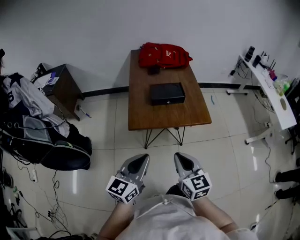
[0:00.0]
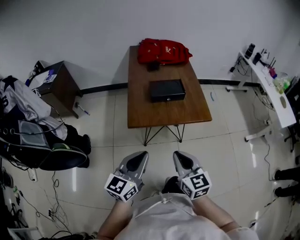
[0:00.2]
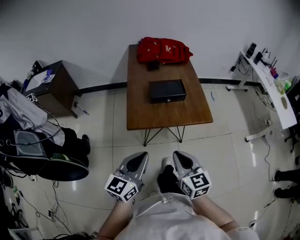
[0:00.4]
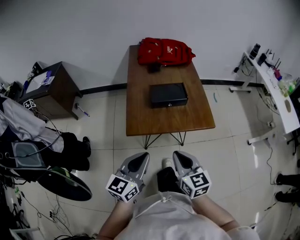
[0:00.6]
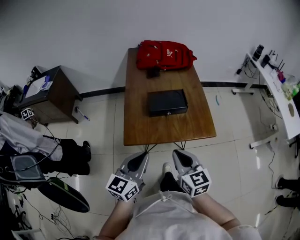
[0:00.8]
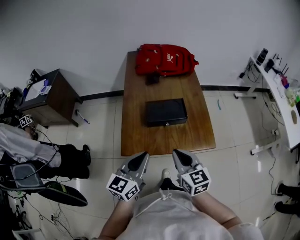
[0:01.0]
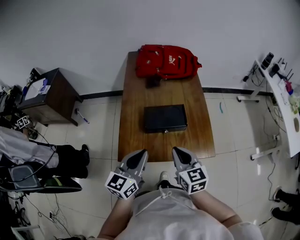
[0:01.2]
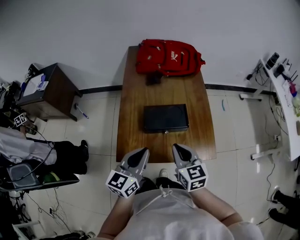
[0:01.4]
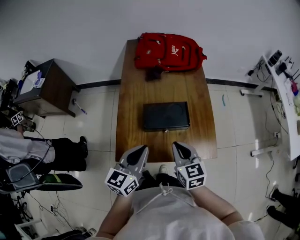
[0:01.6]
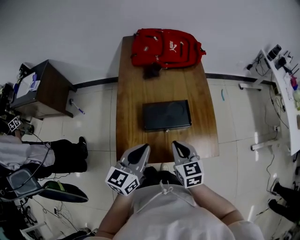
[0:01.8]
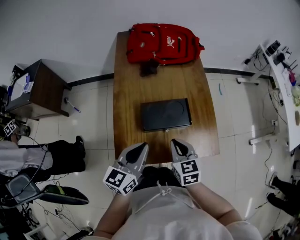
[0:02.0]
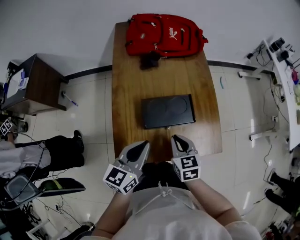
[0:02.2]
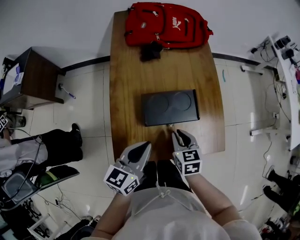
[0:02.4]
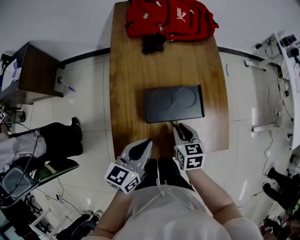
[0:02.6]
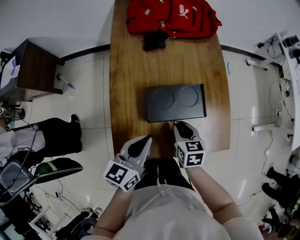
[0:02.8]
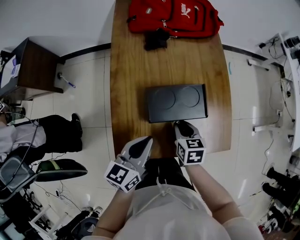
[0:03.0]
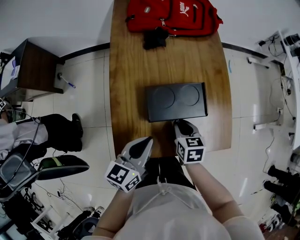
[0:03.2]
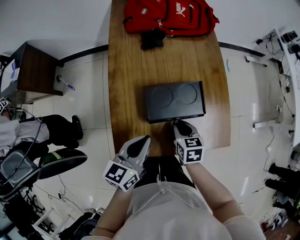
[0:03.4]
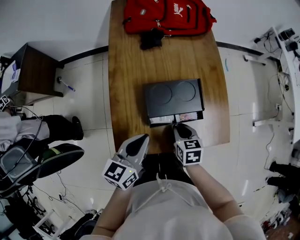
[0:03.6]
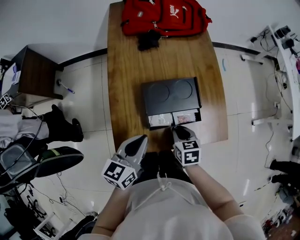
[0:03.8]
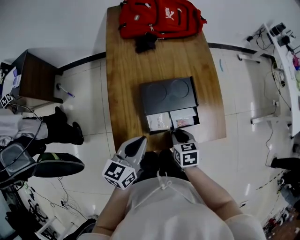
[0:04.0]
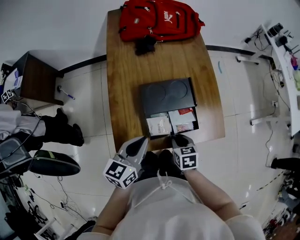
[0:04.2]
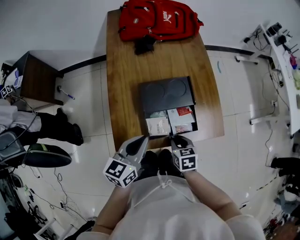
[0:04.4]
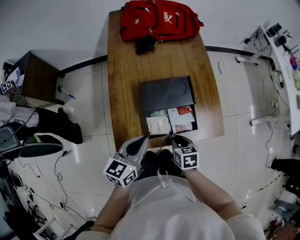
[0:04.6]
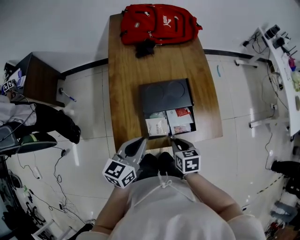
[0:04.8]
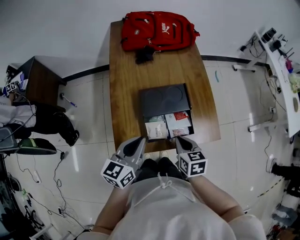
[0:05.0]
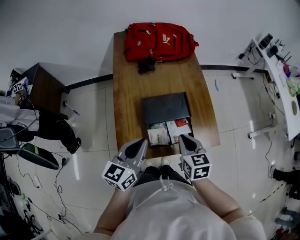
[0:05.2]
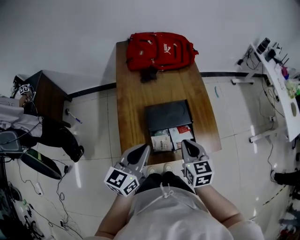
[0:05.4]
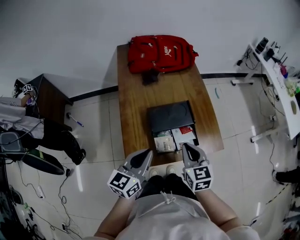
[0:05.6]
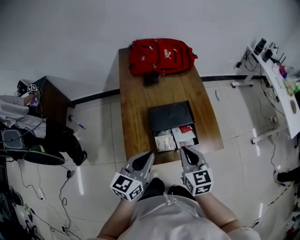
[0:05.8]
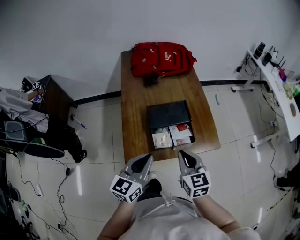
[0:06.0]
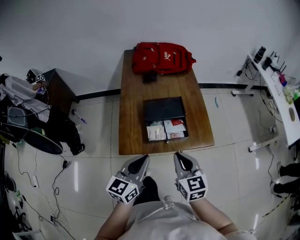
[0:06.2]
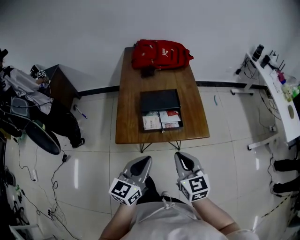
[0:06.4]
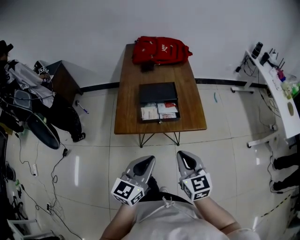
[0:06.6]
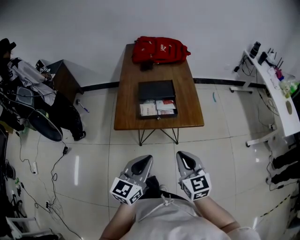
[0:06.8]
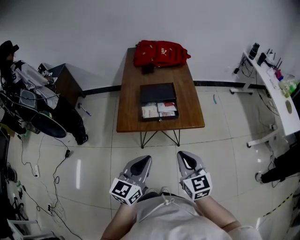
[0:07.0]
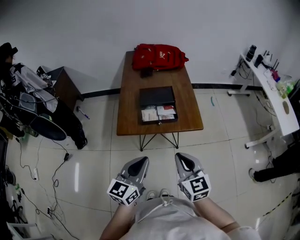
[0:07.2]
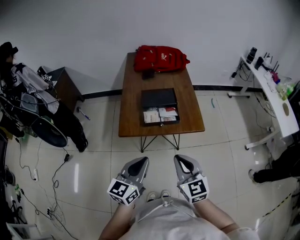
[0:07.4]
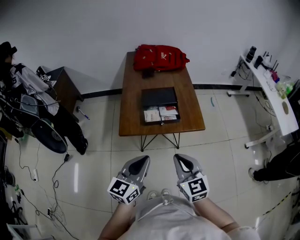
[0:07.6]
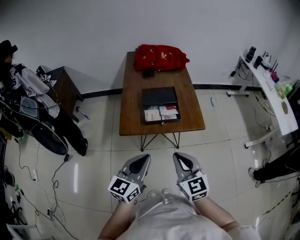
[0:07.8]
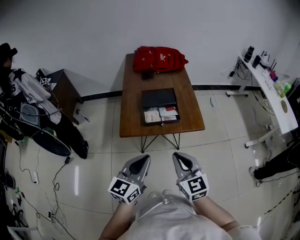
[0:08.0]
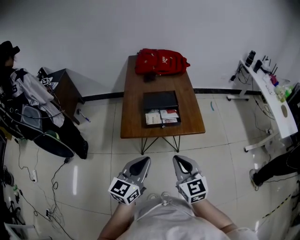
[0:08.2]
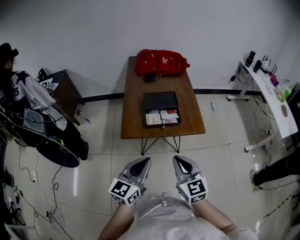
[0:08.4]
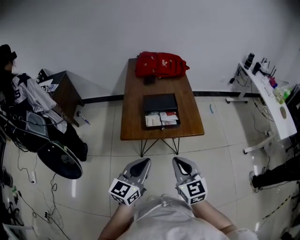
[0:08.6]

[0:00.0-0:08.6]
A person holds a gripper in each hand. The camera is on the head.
0:00.0 to 0:01.4: Both grippers travel together forward, about 30 cm.
0:01.4 to 0:02.8: The left gripper heads downward and forward, covering about 15 cm. Meanwhile the right gripper heads downward and forward, covering approximately 20 cm, and changes its angle by about 30 degrees.
0:02.8 to 0:04.4: The right gripper is displaced backward by roughly 10 cm. Meanwhile the left gripper goes about 5 cm backward.
0:04.4 to 0:05.8: The right gripper heads upward, covering roughly 20 cm, and points its fingers some 30 degrees further upward; the left gripper shifts some 10 cm upward.
0:05.8 to 0:07.2: The right gripper shifts some 25 cm backward. Meanwhile the left gripper goes some 25 cm backward and to the right.
0:07.2 to 0:08.6: The grippers make only small movements.

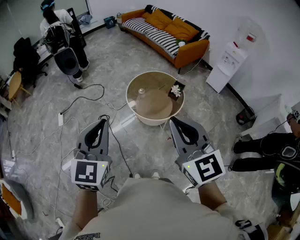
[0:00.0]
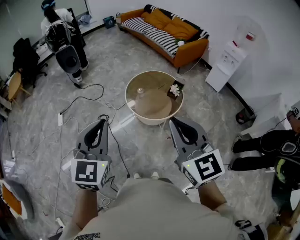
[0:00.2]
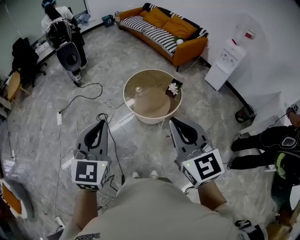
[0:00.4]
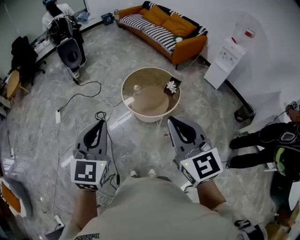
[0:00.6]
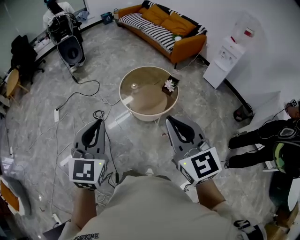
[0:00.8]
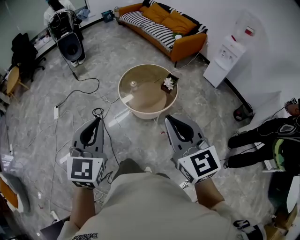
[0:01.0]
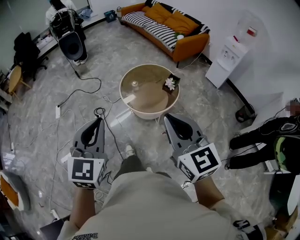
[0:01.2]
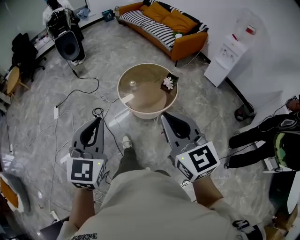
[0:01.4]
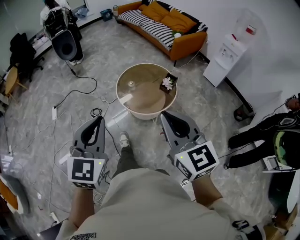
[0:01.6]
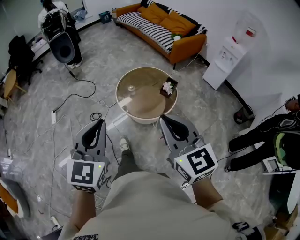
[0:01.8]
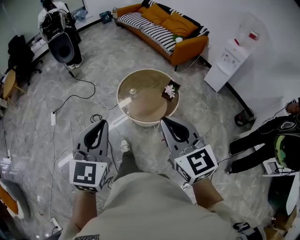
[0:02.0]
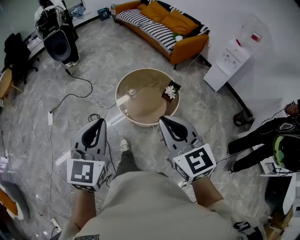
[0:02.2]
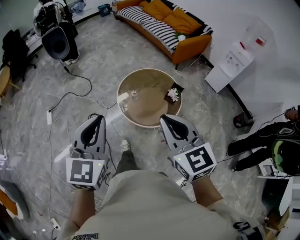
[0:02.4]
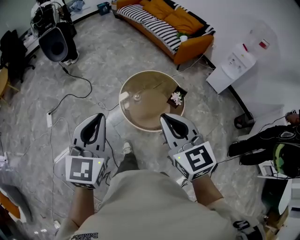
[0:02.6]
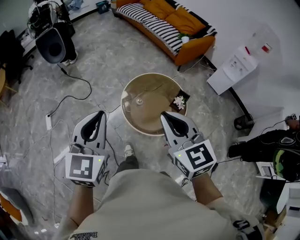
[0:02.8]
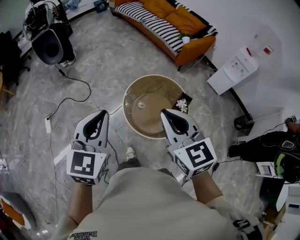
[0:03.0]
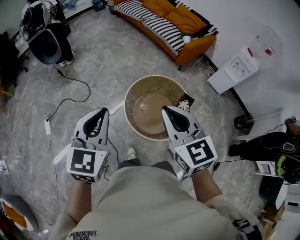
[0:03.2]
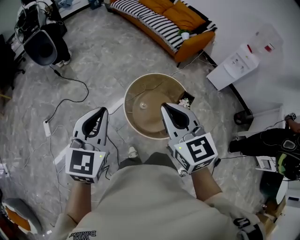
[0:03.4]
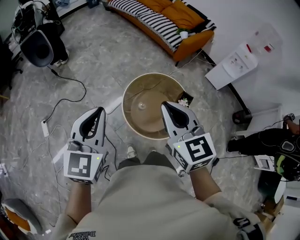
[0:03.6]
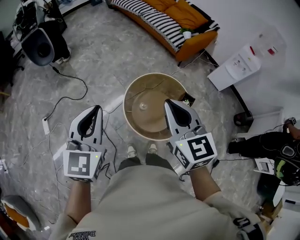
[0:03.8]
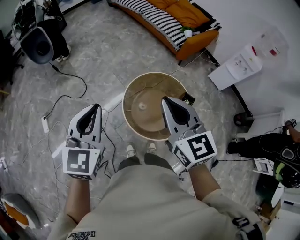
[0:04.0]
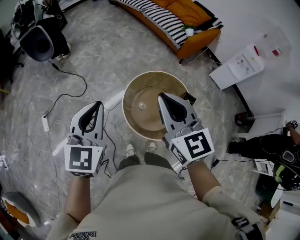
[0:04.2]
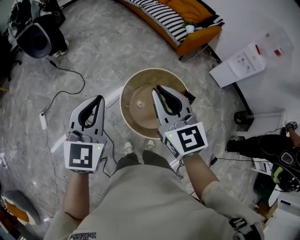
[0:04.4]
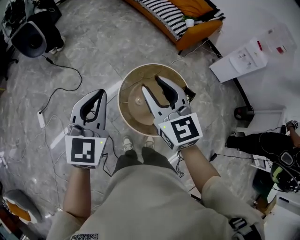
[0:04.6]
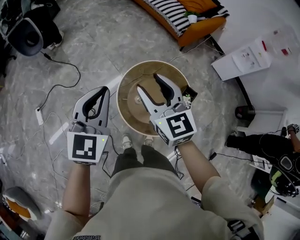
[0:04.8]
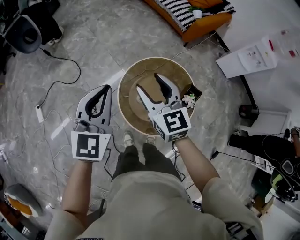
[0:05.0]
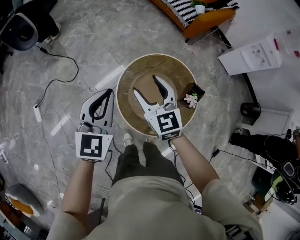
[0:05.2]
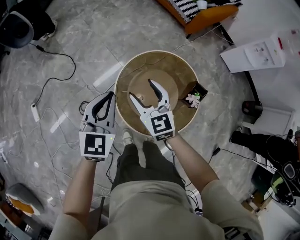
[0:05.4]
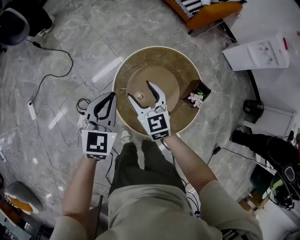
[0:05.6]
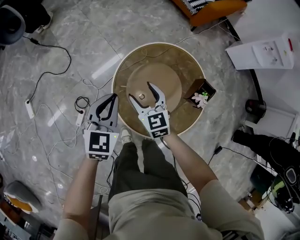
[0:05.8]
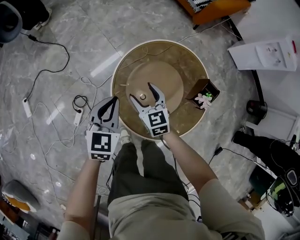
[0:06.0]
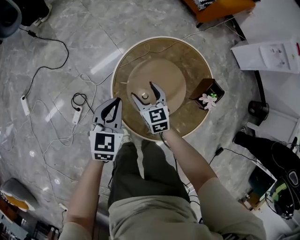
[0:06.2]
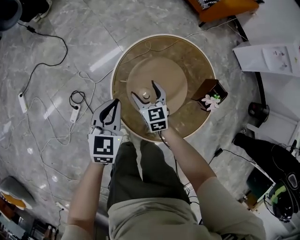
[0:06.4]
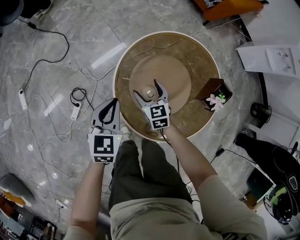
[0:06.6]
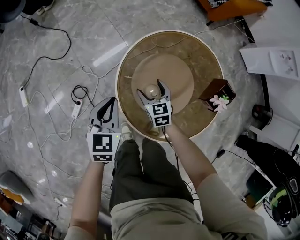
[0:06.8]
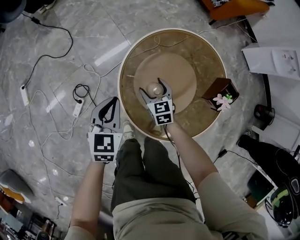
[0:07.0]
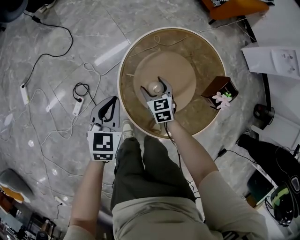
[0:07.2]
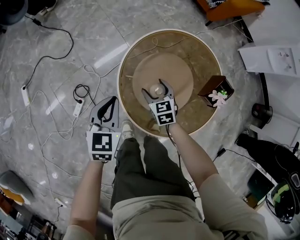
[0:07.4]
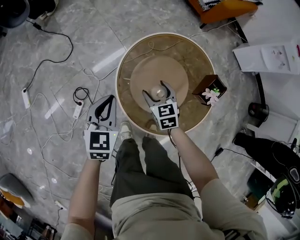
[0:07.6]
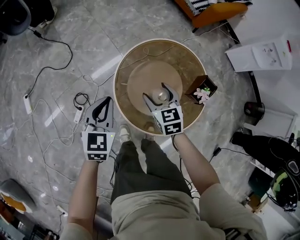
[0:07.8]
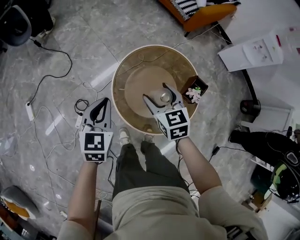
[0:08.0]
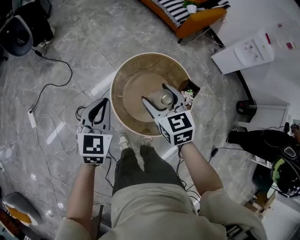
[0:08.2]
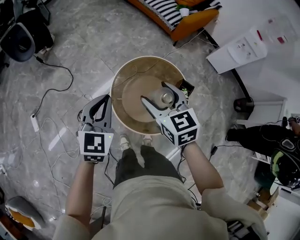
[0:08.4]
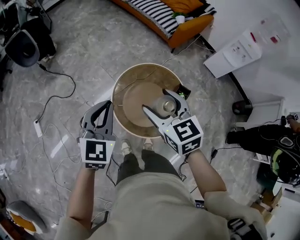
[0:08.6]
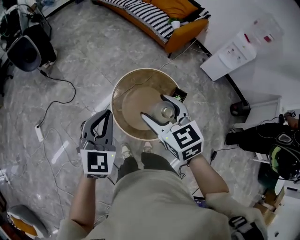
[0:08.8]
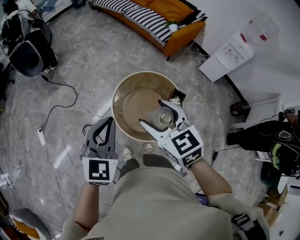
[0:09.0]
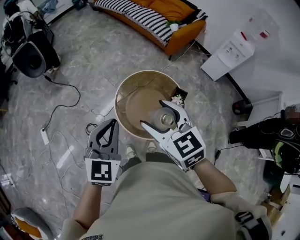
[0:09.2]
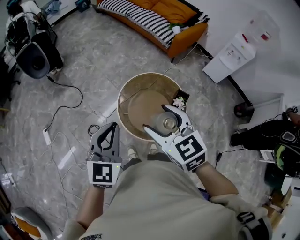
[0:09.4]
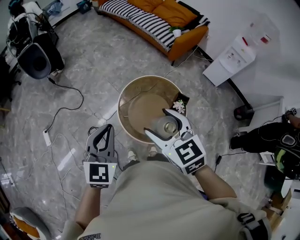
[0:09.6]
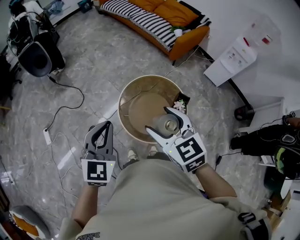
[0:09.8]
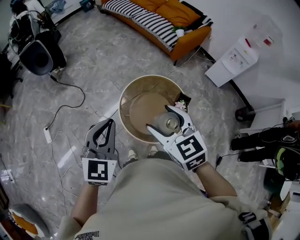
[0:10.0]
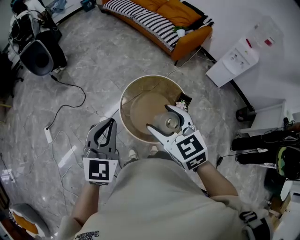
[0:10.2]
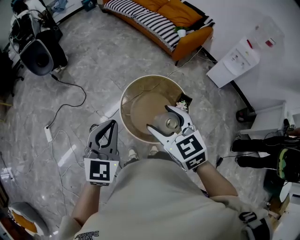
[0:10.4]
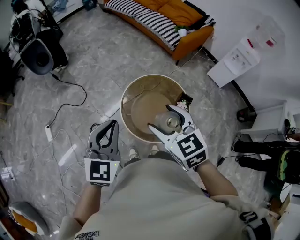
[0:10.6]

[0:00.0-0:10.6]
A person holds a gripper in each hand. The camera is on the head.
0:00.0 to 0:01.6: The left gripper is displaced to the right by about 10 cm. Meanwhile the right gripper goes roughly 10 cm to the right and downward.
0:01.6 to 0:03.0: The two grippers go roughly 35 cm forward.
0:03.0 to 0:04.6: The grippers both shift forward by roughly 20 cm. The right gripper opens its fingers.
0:04.6 to 0:06.0: Both grippers move downward, approximately 40 cm. The right gripper turns by roughly 20 degrees, and opens up.
0:06.0 to 0:07.6: The right gripper goes roughly 5 cm downward. Meanwhile the left gripper reaches approximately 10 cm downward, then returns.
0:07.6 to 0:09.0: The grippers both shift upward by approximately 50 cm. The left gripper turns by approximately 20 degrees.
0:09.0 to 0:10.6: There are only small adjustments of the grippers.

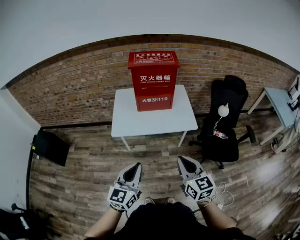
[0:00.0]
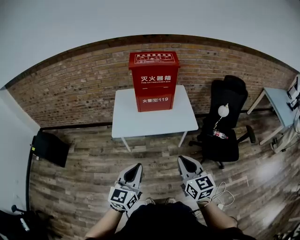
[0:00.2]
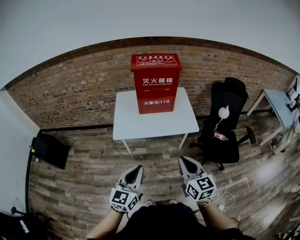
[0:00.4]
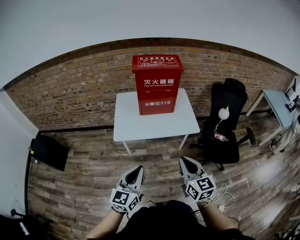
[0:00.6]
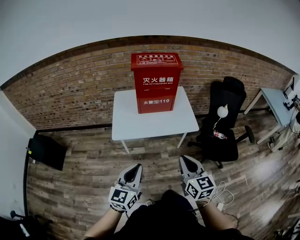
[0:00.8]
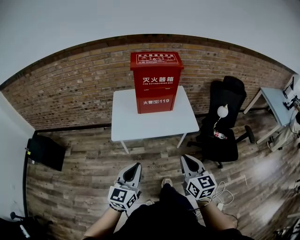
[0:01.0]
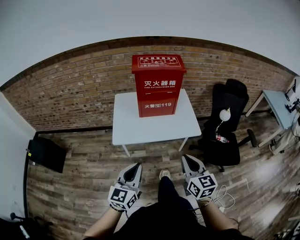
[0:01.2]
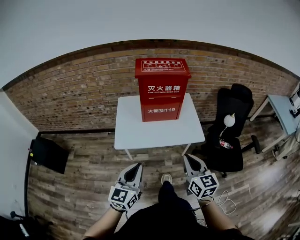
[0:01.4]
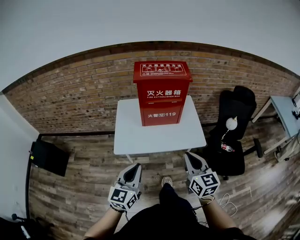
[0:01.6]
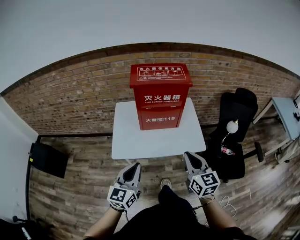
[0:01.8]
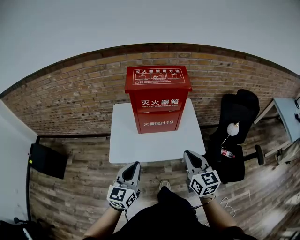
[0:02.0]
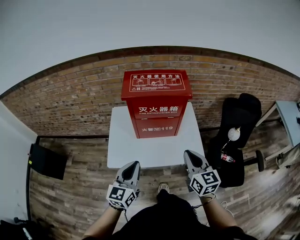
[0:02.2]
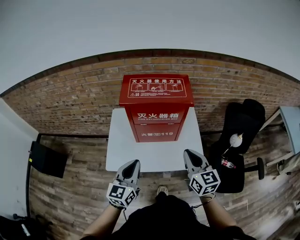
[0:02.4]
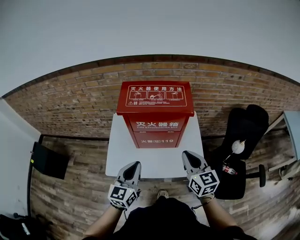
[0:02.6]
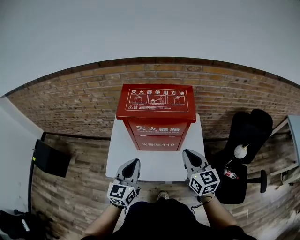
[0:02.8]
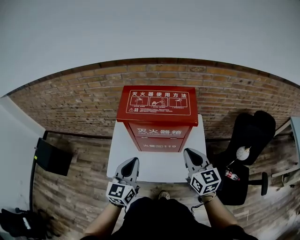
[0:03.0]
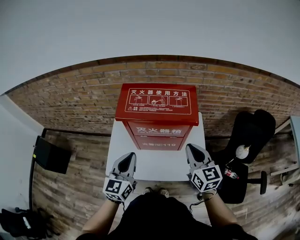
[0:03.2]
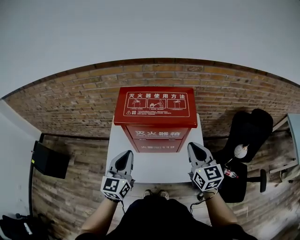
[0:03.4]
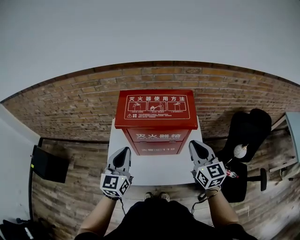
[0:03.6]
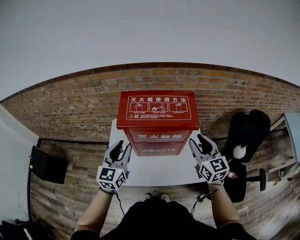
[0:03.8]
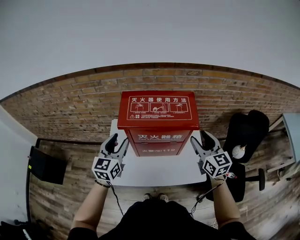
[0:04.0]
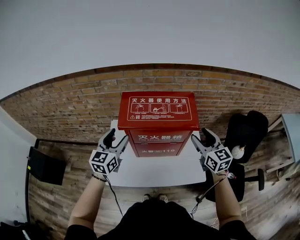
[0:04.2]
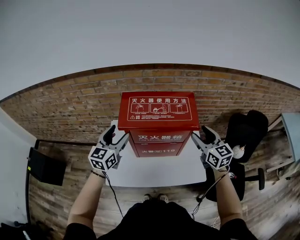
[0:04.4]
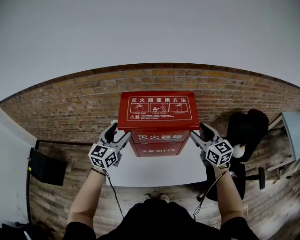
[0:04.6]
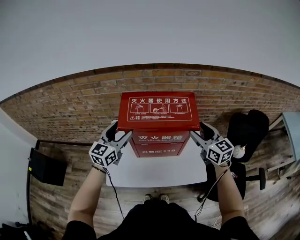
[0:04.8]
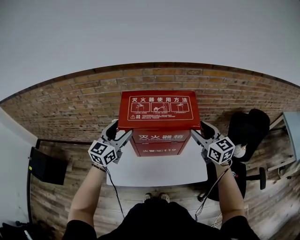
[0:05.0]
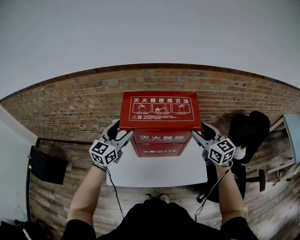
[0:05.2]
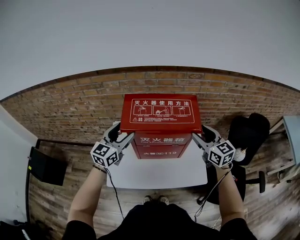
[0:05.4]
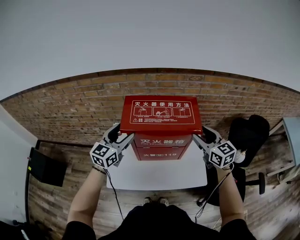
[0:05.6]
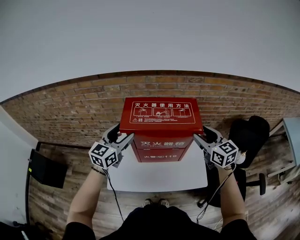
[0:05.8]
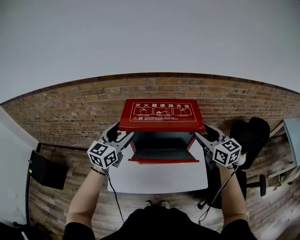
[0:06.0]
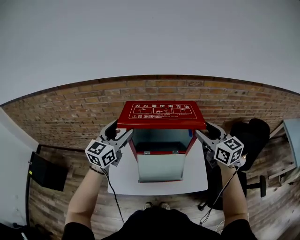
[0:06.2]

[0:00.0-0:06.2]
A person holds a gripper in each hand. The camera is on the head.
0:00.0 to 0:01.6: Both grippers move forward, about 15 cm.
0:01.6 to 0:03.2: The two grippers go some 35 cm forward.
0:03.2 to 0:04.6: The right gripper is displaced forward by roughly 10 cm, and opens, while the left gripper moves forward and to the left, approximately 15 cm, and opens its fingers.
0:04.6 to 0:06.2: Both grippers travel together upward, about 5 cm.
